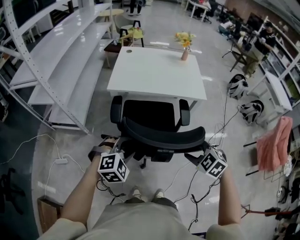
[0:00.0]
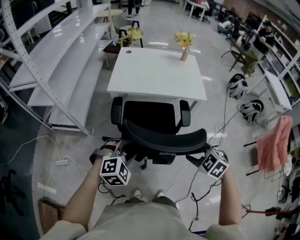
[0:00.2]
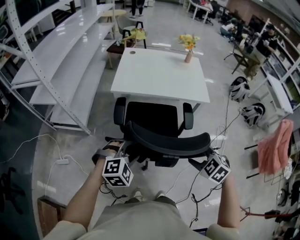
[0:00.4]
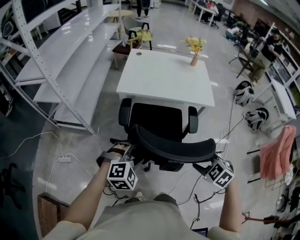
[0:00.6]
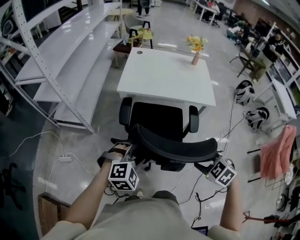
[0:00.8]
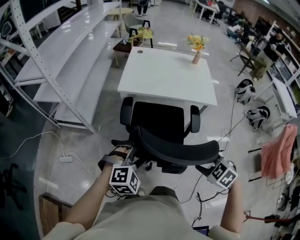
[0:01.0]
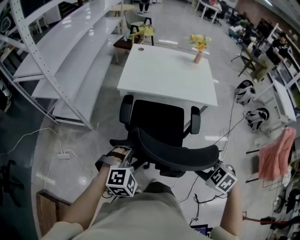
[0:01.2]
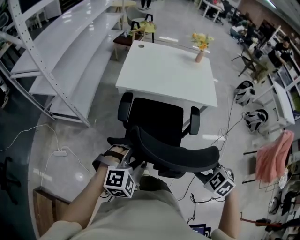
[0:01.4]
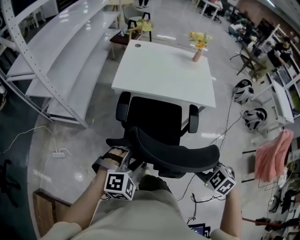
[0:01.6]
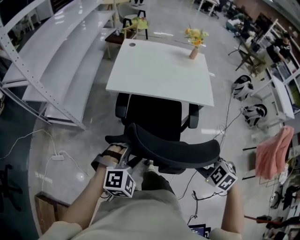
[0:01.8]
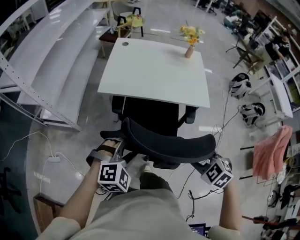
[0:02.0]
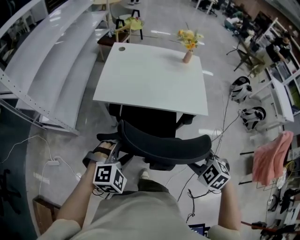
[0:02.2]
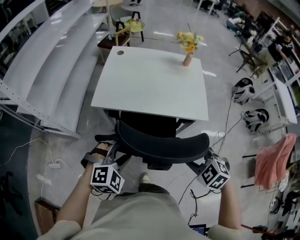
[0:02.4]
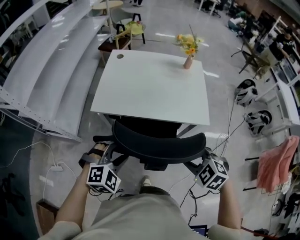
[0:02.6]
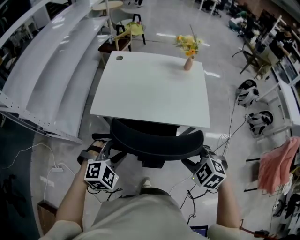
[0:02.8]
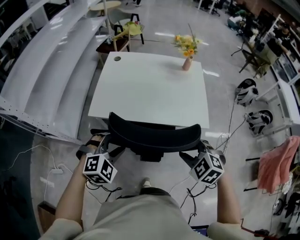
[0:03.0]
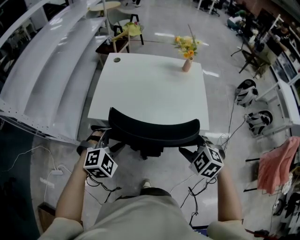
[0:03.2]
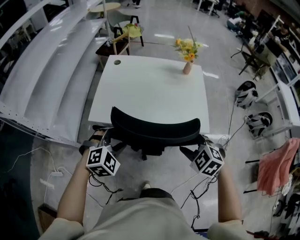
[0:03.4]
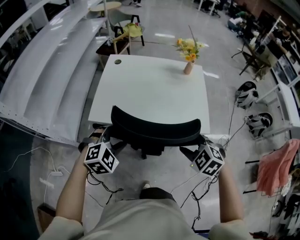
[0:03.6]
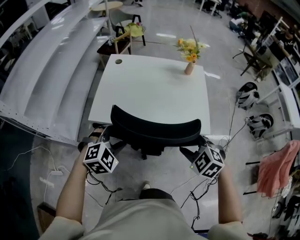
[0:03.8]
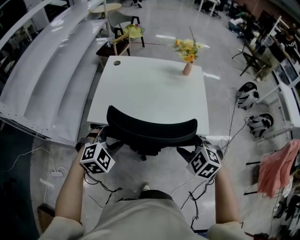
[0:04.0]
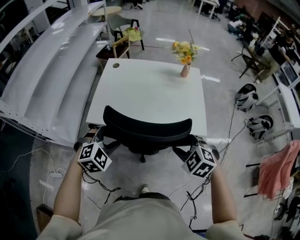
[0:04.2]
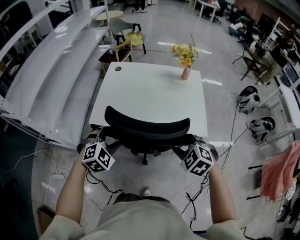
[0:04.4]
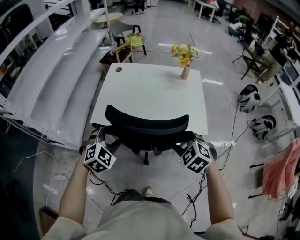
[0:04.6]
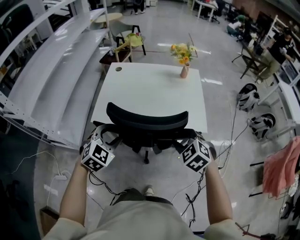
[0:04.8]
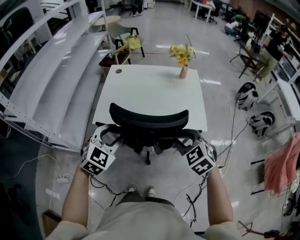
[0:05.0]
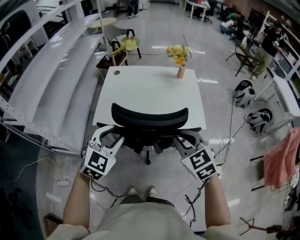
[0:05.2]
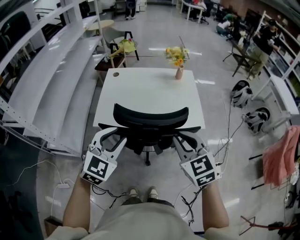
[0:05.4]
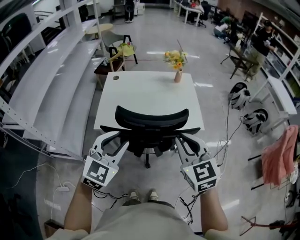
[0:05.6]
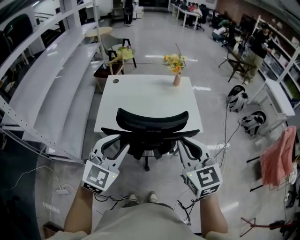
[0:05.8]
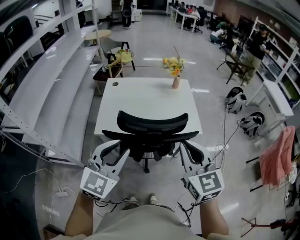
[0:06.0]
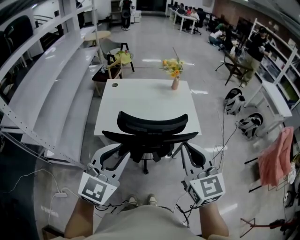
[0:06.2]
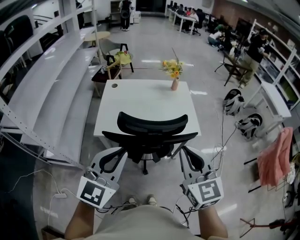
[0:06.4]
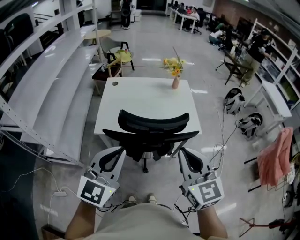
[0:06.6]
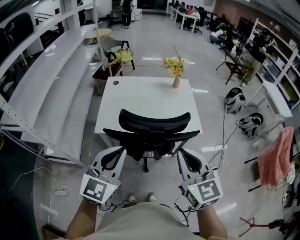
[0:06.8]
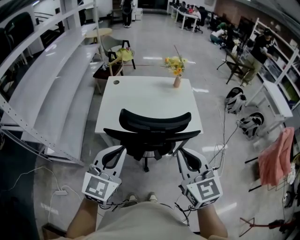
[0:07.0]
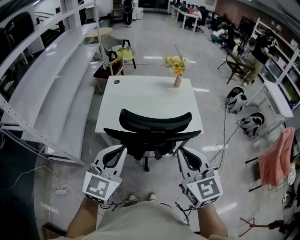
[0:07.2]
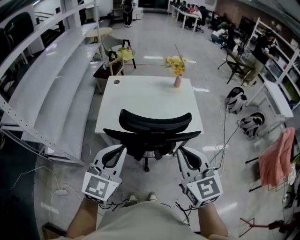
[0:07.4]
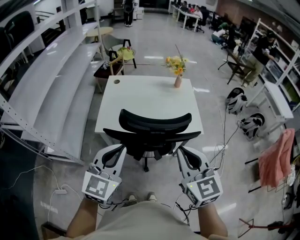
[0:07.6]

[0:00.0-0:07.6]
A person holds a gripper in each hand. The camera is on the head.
0.0 to 1.6 s: There are only small adjustments of the grippers.
1.6 to 3.0 s: Both grippers move forward, about 25 cm.
3.0 to 4.6 s: The grippers both shift forward by some 5 cm.
4.6 to 6.0 s: The grippers both shift upward and backward by some 20 cm. The right gripper angles its fingers upward, by approximately 40 degrees, and closes its fingers; the left gripper changes its angle by roughly 30 degrees, and closes up.
6.0 to 7.6 s: The left gripper closes up.

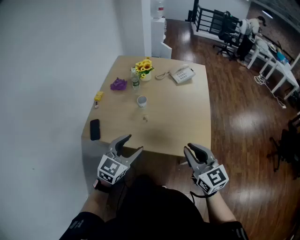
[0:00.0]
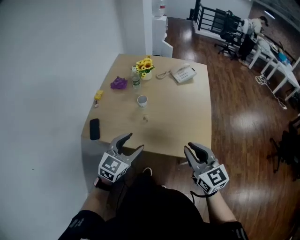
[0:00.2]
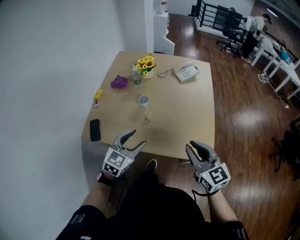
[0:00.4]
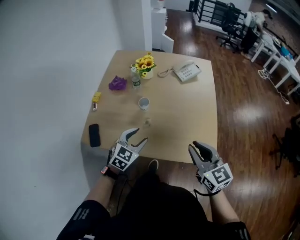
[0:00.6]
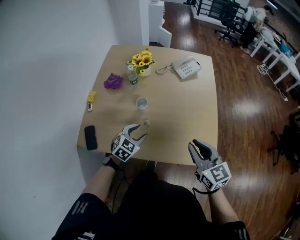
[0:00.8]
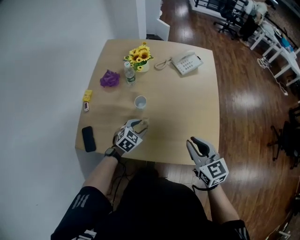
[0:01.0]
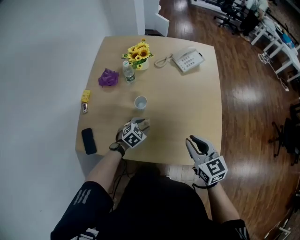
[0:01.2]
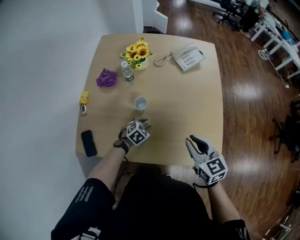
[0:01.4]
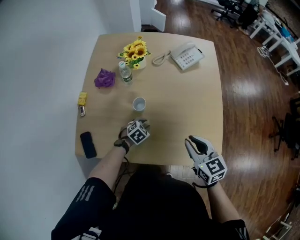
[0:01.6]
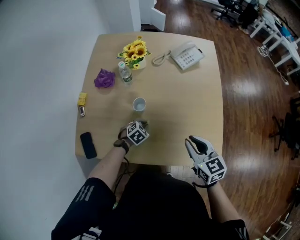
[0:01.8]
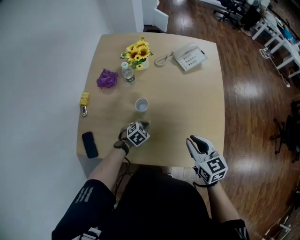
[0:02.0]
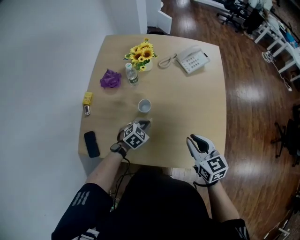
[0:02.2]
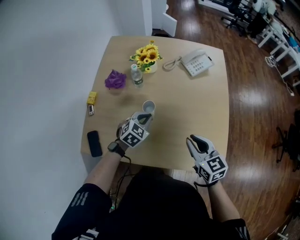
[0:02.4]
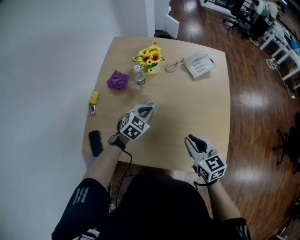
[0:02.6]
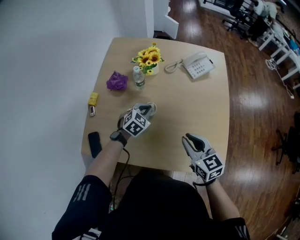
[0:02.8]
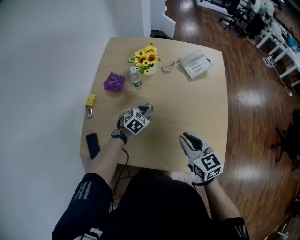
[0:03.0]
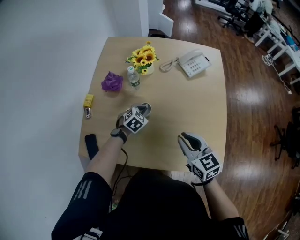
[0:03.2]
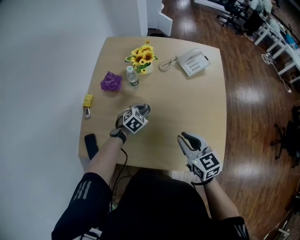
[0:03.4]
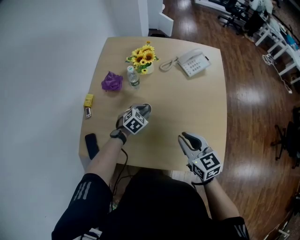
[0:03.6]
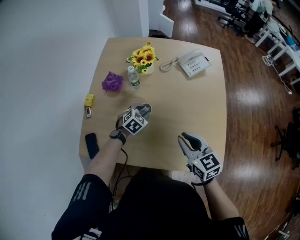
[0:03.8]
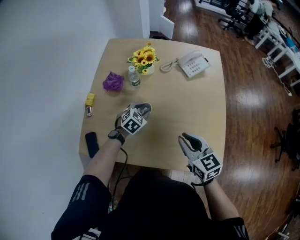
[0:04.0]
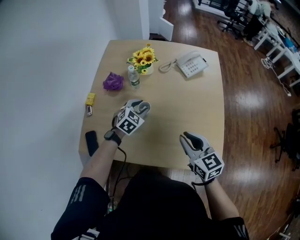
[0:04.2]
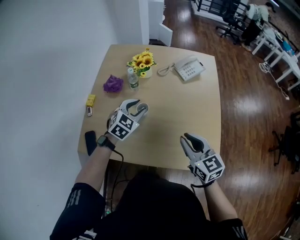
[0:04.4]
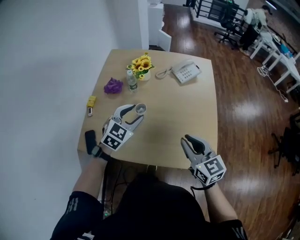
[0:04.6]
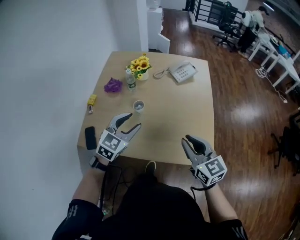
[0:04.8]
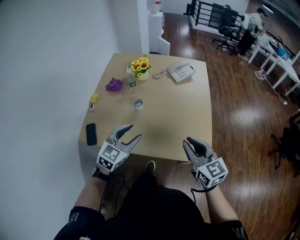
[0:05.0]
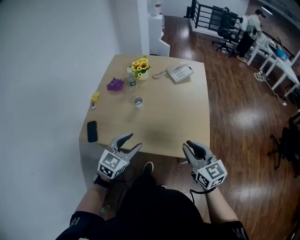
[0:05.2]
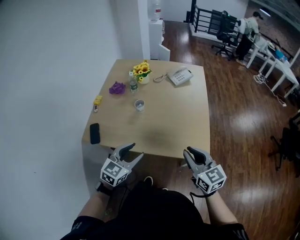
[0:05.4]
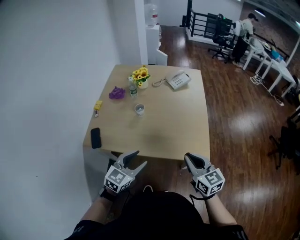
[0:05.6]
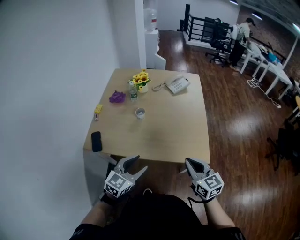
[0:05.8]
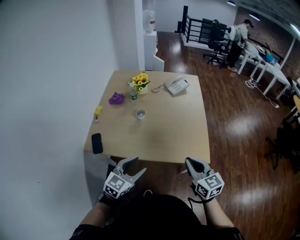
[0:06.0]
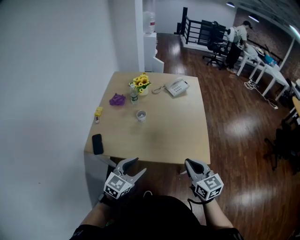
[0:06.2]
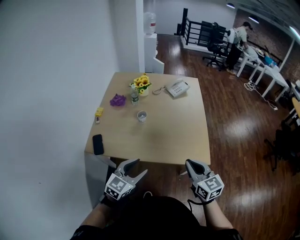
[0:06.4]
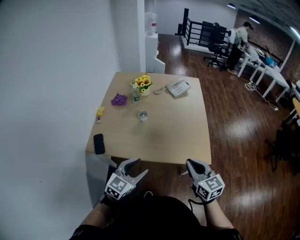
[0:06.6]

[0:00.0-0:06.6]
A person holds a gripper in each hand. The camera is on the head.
0.0 to 1.6 s: The right gripper shifts approximately 25 cm forward and downward, and rotates roughly 20 degrees, while the left gripper shifts roughly 40 cm downward and forward, tips its fingers downward by roughly 40 degrees, and closes its fingers.
1.6 to 3.2 s: The right gripper moves to the left, about 5 cm. Meanwhile the left gripper shifts approximately 15 cm forward and upward, and closes its fingers.
3.2 to 5.0 s: The right gripper goes roughly 20 cm backward, upward and to the right; the left gripper goes approximately 35 cm backward and upward, rotates roughly 30 degrees, and opens up.
5.0 to 6.6 s: Both grippers move backward, about 15 cm.

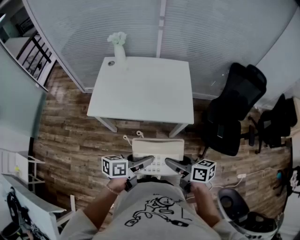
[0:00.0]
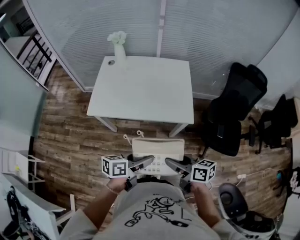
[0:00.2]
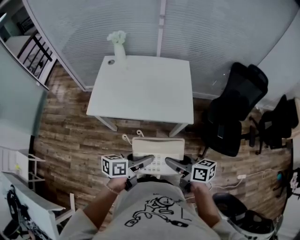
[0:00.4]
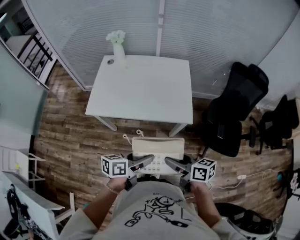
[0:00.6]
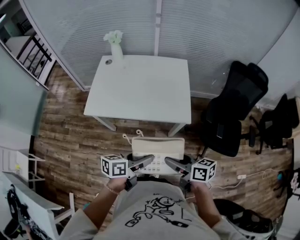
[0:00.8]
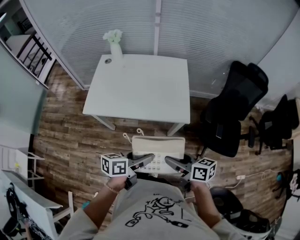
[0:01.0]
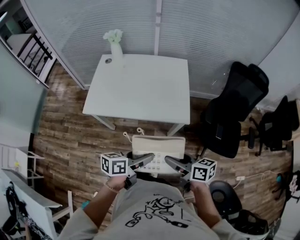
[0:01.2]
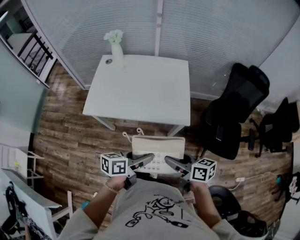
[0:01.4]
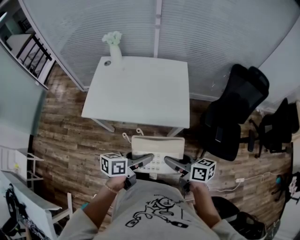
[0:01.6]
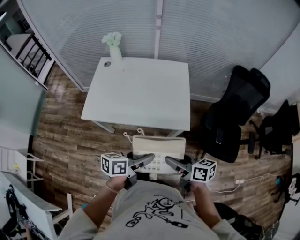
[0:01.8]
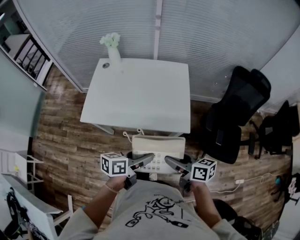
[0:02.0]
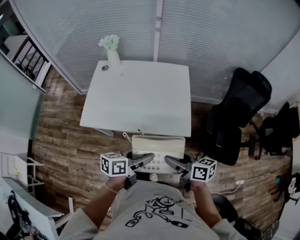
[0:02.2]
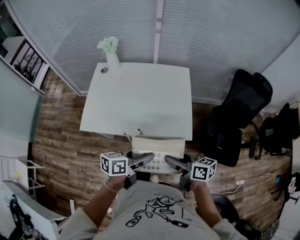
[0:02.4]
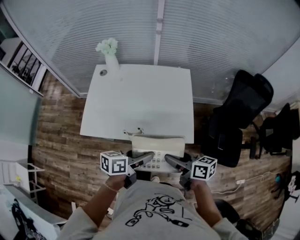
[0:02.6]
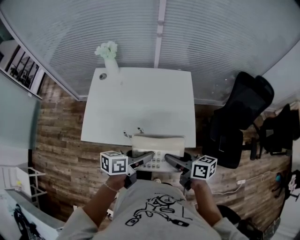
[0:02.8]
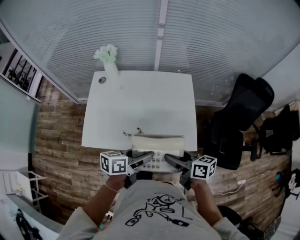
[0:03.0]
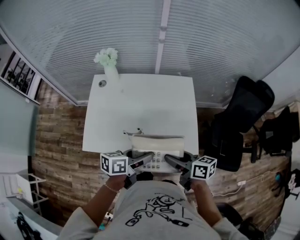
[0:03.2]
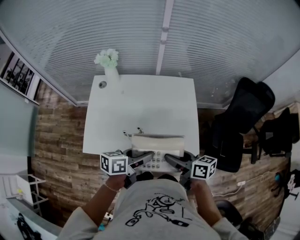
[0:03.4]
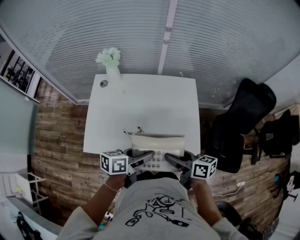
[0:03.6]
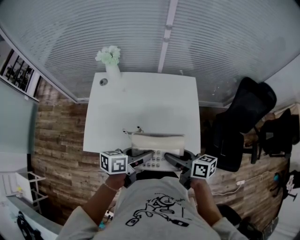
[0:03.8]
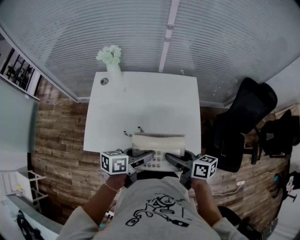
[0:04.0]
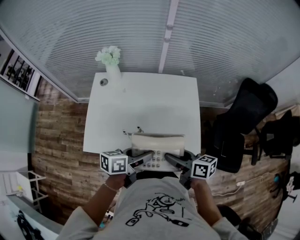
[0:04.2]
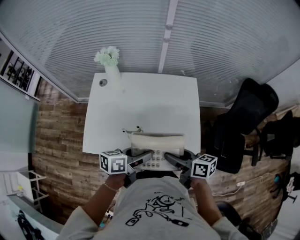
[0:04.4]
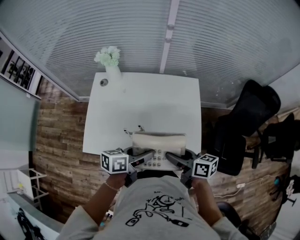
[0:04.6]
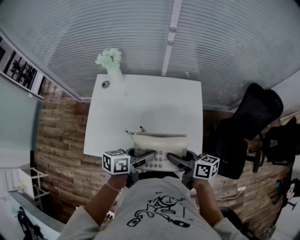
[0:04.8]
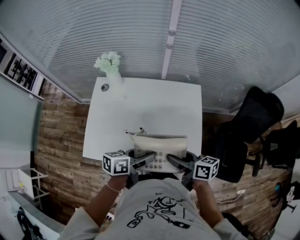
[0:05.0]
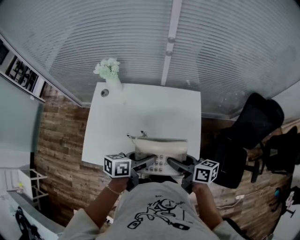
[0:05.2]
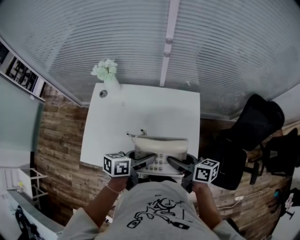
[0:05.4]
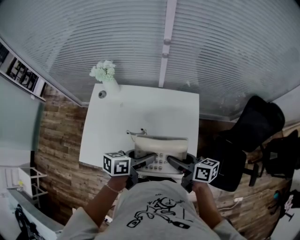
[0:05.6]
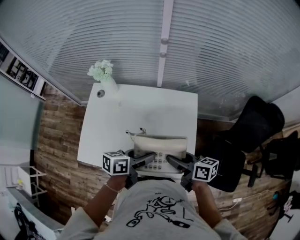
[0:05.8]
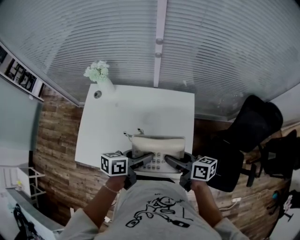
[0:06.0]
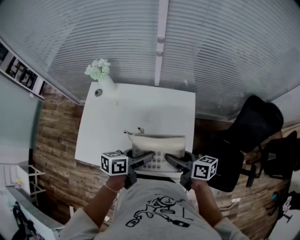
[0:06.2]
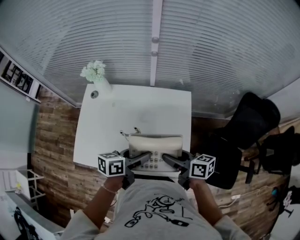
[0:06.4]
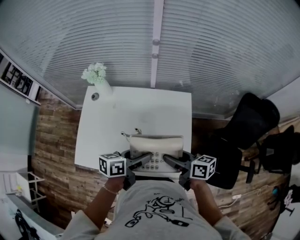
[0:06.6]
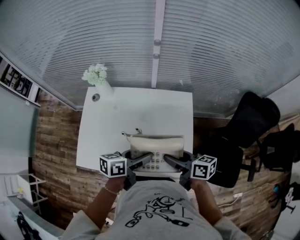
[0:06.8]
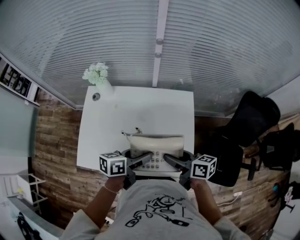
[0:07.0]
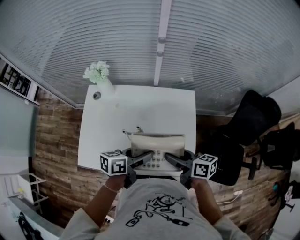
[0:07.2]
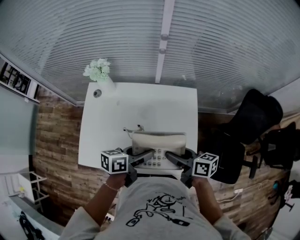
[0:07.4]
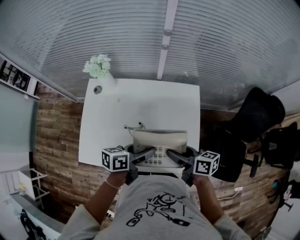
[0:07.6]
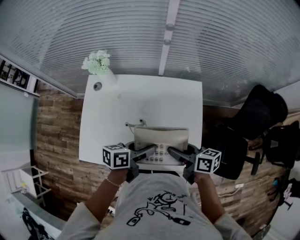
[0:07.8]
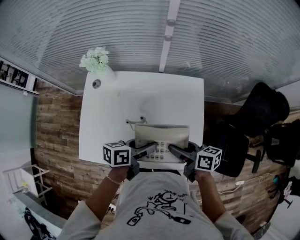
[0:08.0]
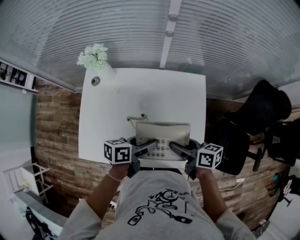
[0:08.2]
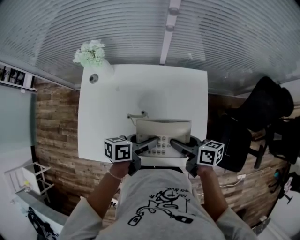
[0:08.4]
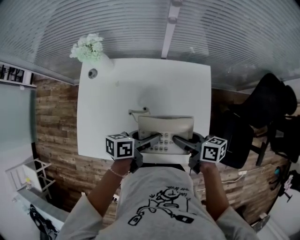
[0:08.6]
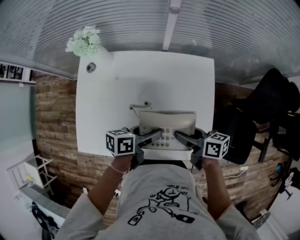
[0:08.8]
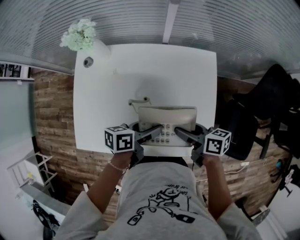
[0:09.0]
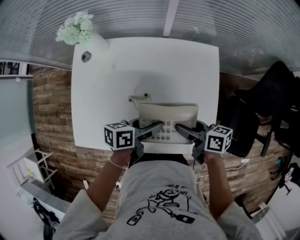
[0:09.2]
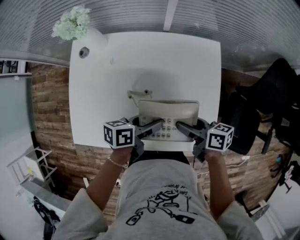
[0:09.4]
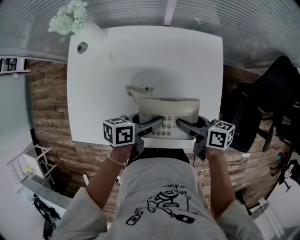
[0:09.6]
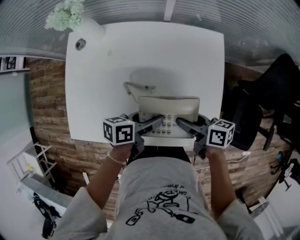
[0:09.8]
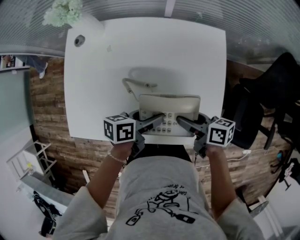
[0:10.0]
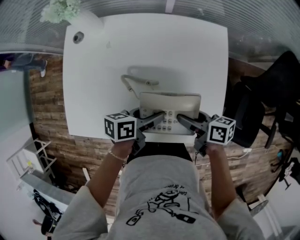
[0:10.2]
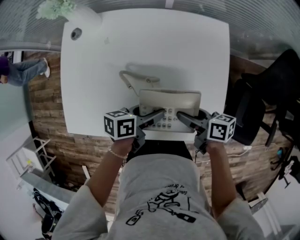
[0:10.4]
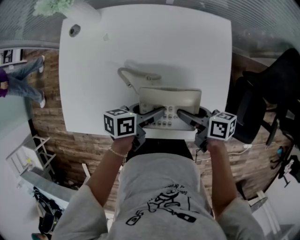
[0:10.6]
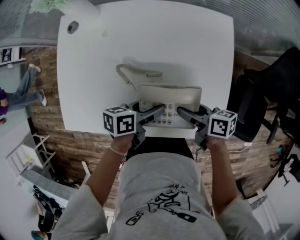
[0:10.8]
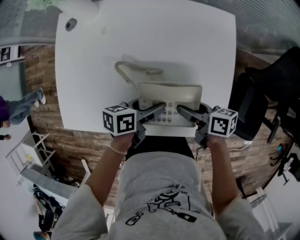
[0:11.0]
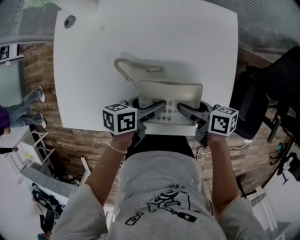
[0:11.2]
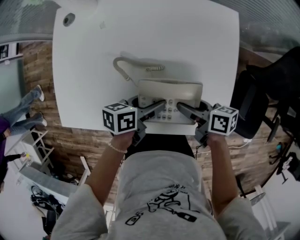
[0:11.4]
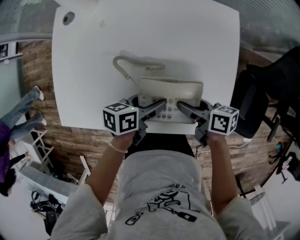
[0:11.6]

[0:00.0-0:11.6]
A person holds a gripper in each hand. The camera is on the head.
0.0 to 1.4 s: The right gripper ends up some 5 cm from where it was; the left gripper changes place by roughly 5 cm.
1.4 to 2.8 s: The grippers both shift forward by about 15 cm.
2.8 to 4.4 s: The grippers both shift forward by some 10 cm.
4.4 to 5.8 s: The grippers both shift forward and to the right by approximately 10 cm.
5.8 to 7.2 s: The grippers move only a little.
7.2 to 8.8 s: Both grippers move downward, roughly 10 cm.
8.8 to 10.2 s: Both grippers travel together downward, roughly 10 cm.
10.2 to 11.6 s: The grippers make only small movements.
